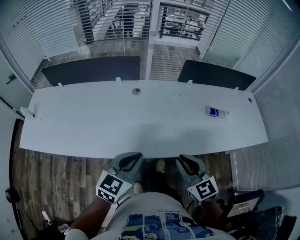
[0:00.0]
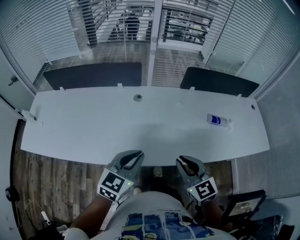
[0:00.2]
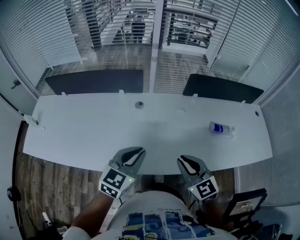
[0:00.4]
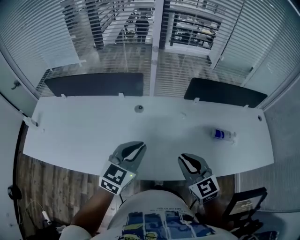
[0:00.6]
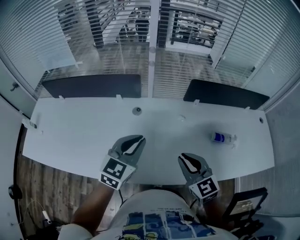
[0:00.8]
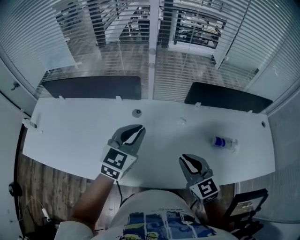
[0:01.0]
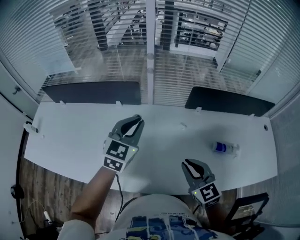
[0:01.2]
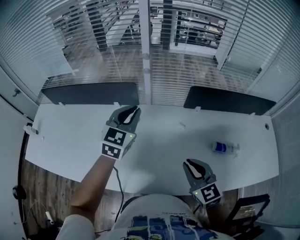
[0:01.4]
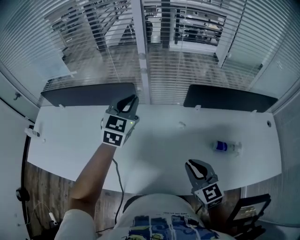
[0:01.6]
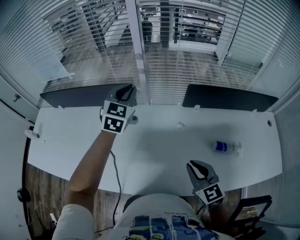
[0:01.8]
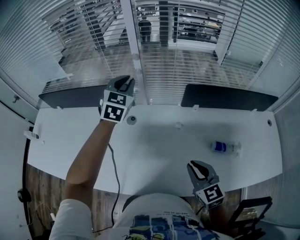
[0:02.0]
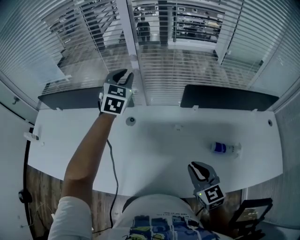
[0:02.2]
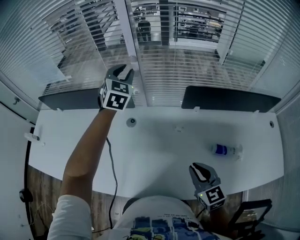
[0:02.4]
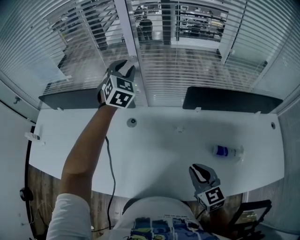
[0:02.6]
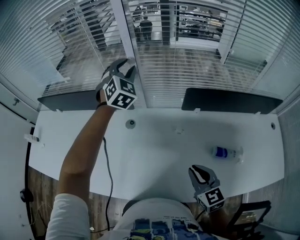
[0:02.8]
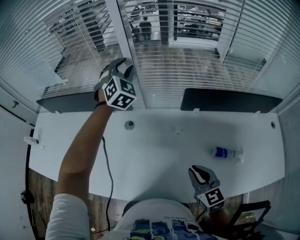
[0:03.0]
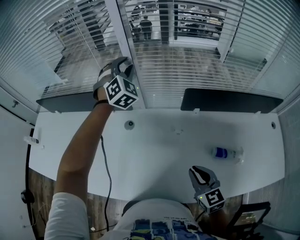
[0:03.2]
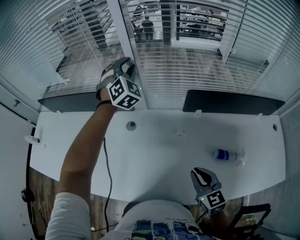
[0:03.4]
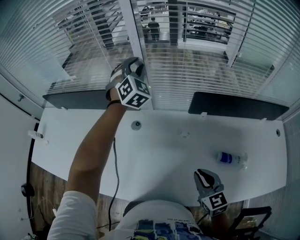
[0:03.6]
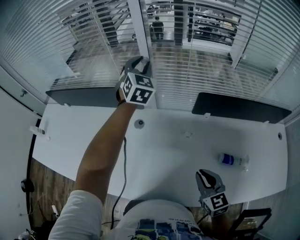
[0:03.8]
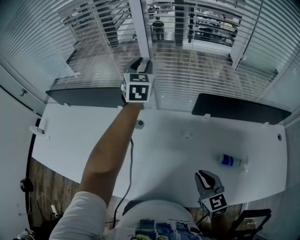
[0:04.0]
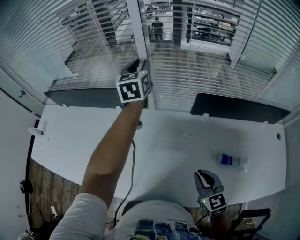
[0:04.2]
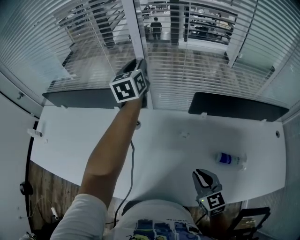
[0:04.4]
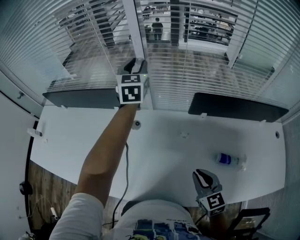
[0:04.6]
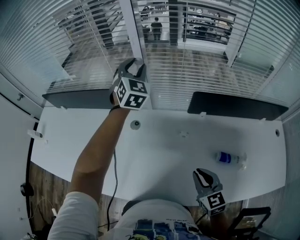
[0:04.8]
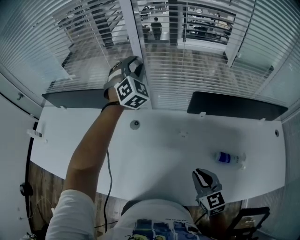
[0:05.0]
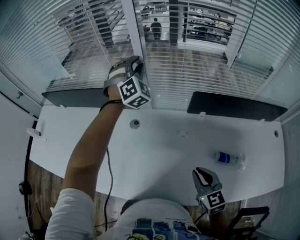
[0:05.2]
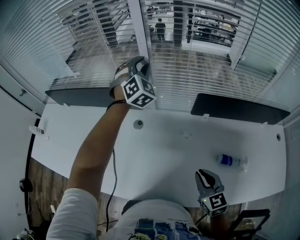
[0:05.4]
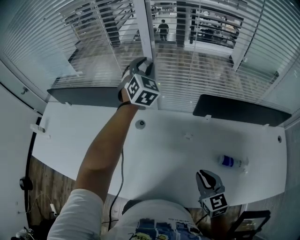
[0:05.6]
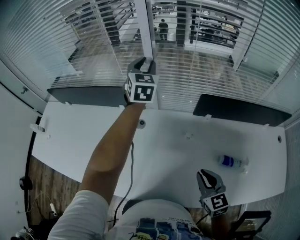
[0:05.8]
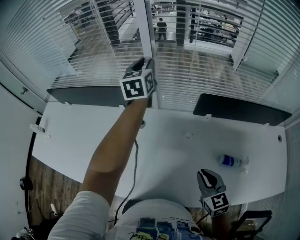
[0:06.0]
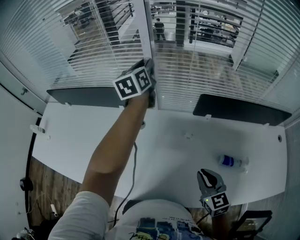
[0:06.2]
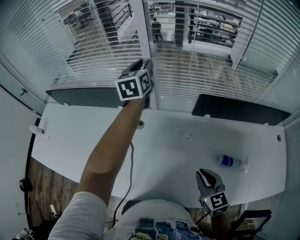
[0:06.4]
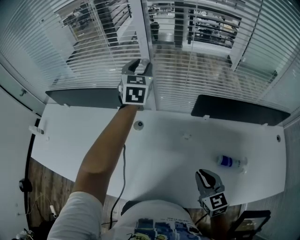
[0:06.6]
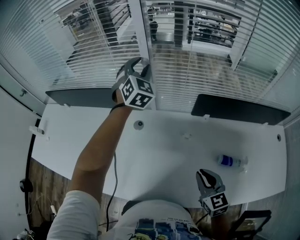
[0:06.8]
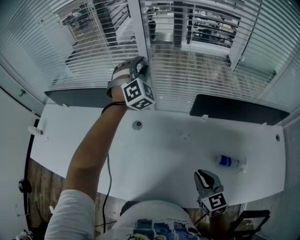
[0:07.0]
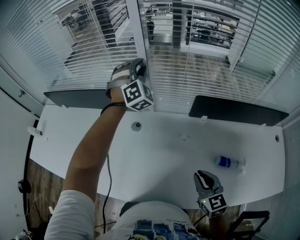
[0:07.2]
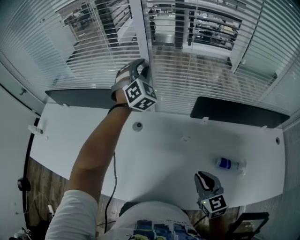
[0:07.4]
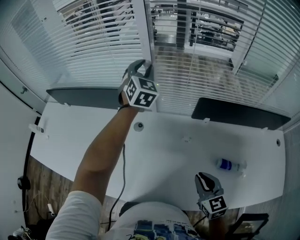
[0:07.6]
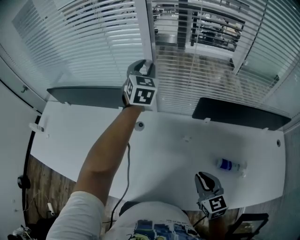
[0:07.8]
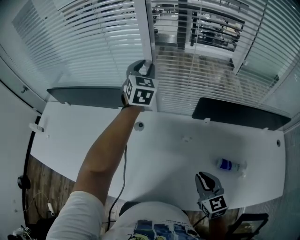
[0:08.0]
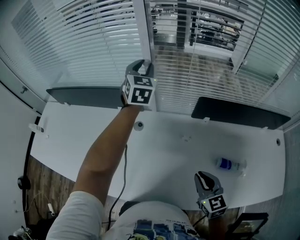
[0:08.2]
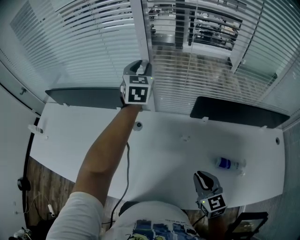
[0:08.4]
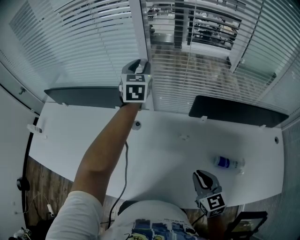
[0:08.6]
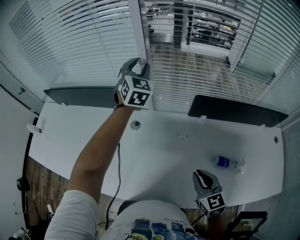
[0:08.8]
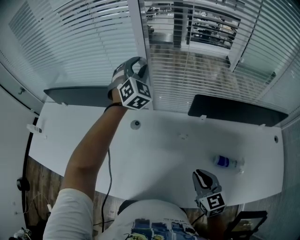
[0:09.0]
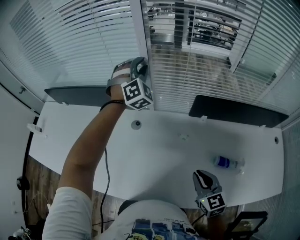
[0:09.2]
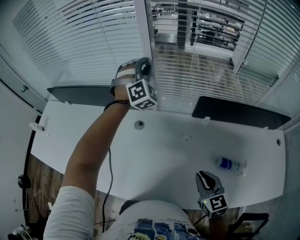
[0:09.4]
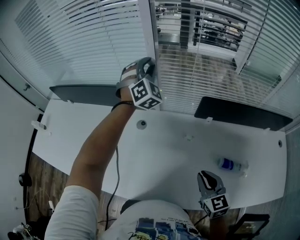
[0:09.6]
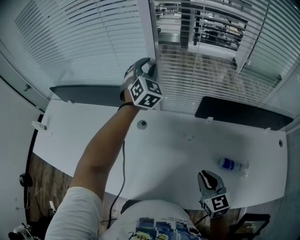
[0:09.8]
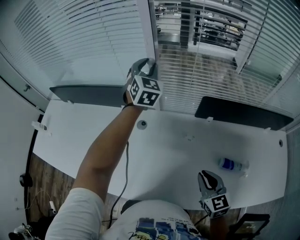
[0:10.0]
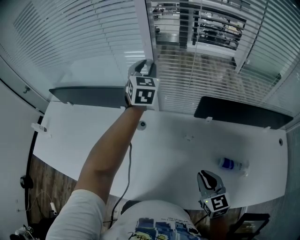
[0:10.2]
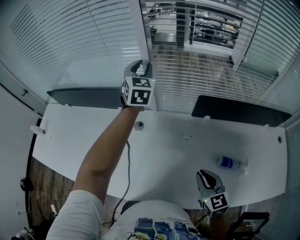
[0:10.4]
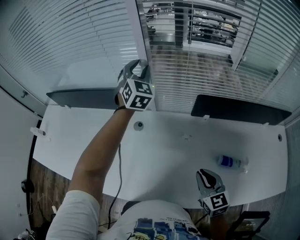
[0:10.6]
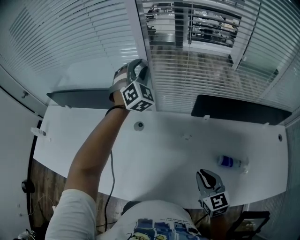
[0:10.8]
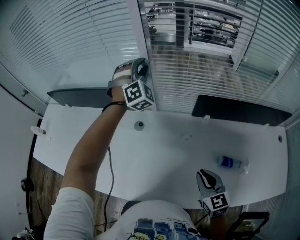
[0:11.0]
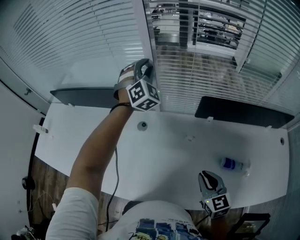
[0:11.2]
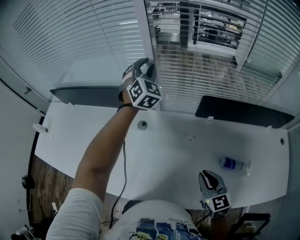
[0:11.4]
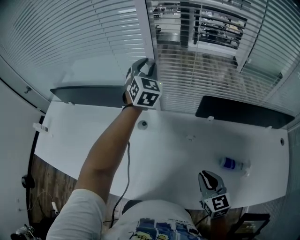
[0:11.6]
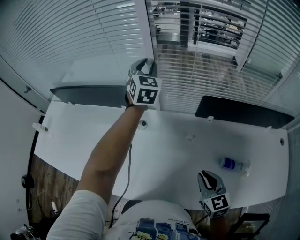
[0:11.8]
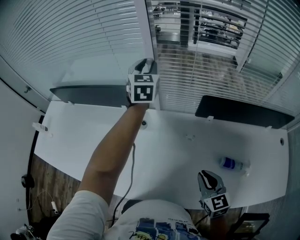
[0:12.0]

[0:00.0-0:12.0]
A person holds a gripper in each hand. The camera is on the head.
0:00.0 to 0:01.6: The left gripper moves forward, roughly 40 cm, and rotates roughly 30 degrees. Meanwhile the right gripper travels forward and to the right by about 25 cm.
0:01.6 to 0:03.0: The right gripper shifts about 10 cm to the right and downward. Meanwhile the left gripper moves forward, approximately 15 cm, swivels approximately 40 degrees, and opens up.
0:03.0 to 0:04.4: The left gripper twists roughly 60 degrees counterclockwise, seen from behind.
0:06.0 to 0:07.6: The left gripper rotates some 40 degrees.
0:09.0 to 0:10.4: The left gripper rotates approximately 30 degrees.

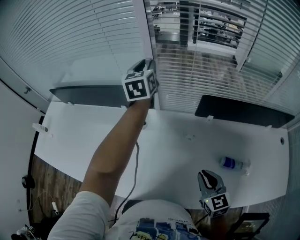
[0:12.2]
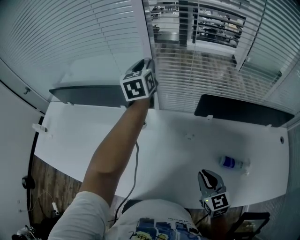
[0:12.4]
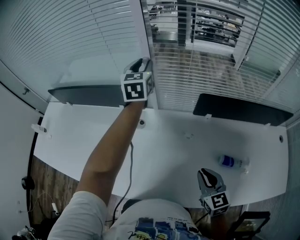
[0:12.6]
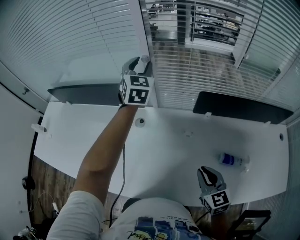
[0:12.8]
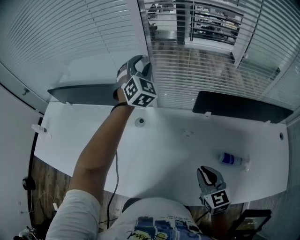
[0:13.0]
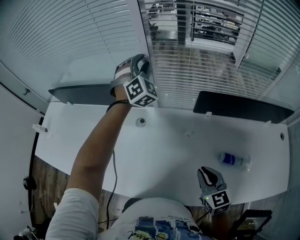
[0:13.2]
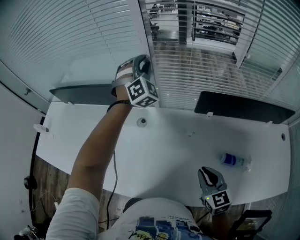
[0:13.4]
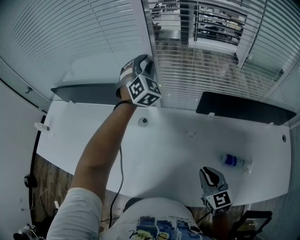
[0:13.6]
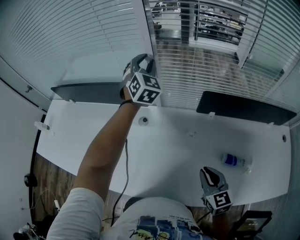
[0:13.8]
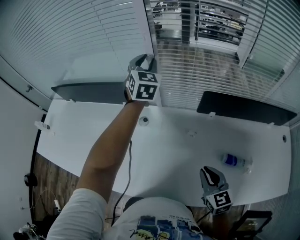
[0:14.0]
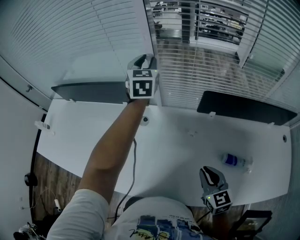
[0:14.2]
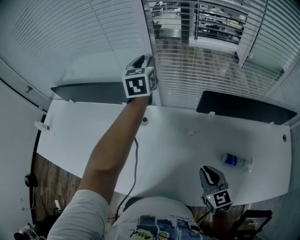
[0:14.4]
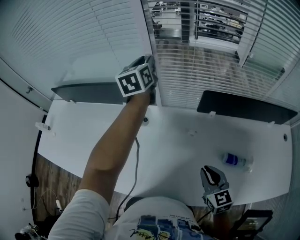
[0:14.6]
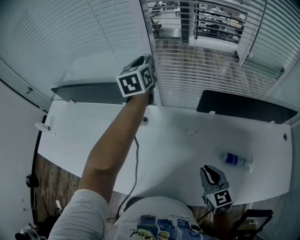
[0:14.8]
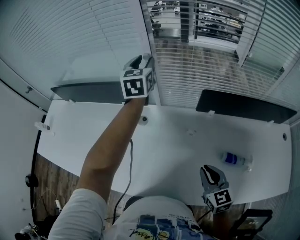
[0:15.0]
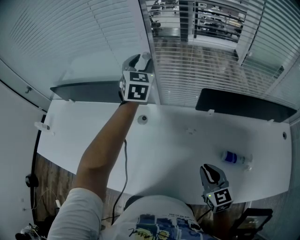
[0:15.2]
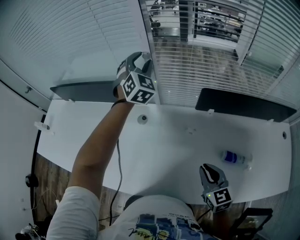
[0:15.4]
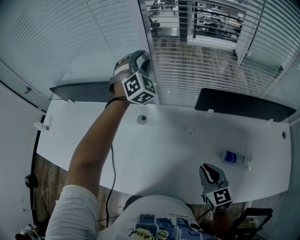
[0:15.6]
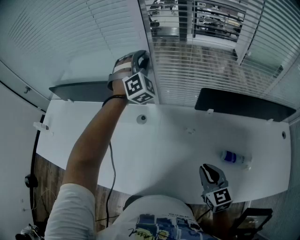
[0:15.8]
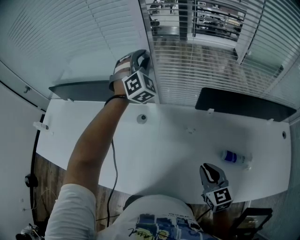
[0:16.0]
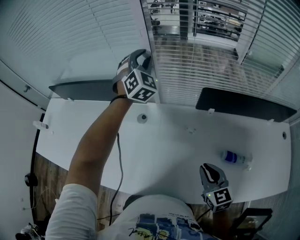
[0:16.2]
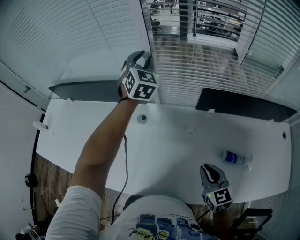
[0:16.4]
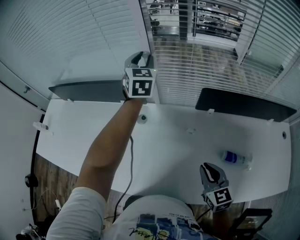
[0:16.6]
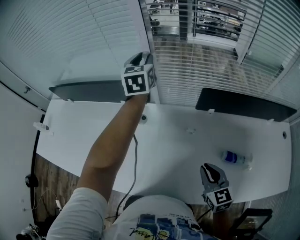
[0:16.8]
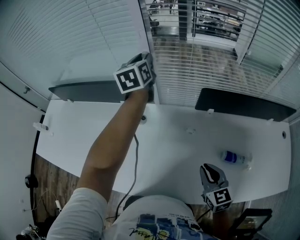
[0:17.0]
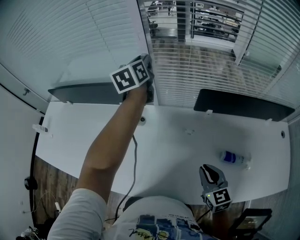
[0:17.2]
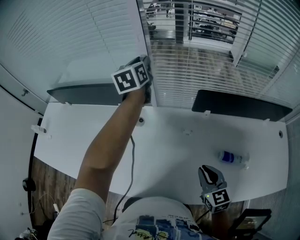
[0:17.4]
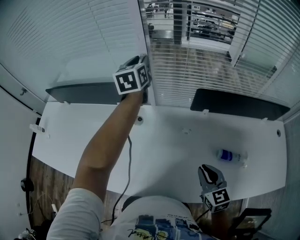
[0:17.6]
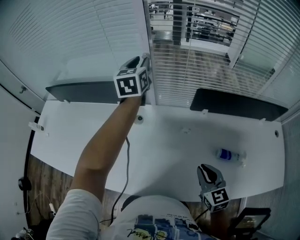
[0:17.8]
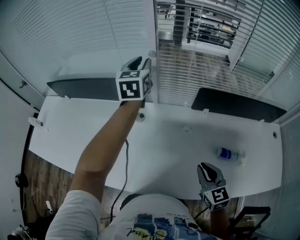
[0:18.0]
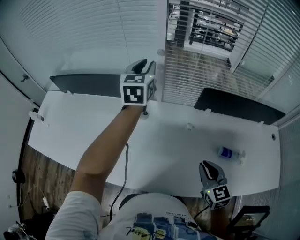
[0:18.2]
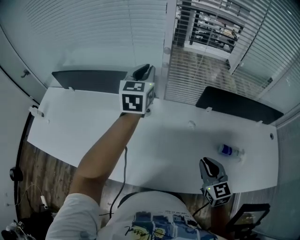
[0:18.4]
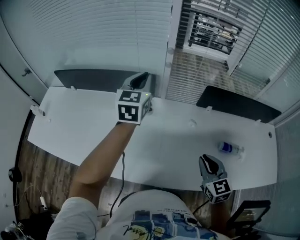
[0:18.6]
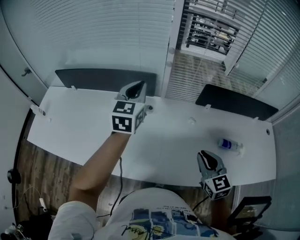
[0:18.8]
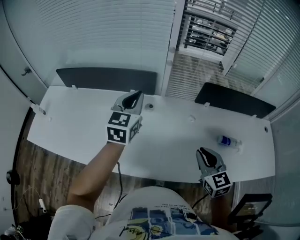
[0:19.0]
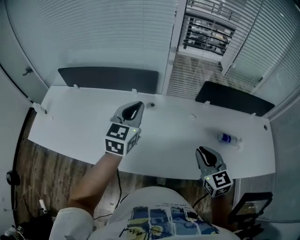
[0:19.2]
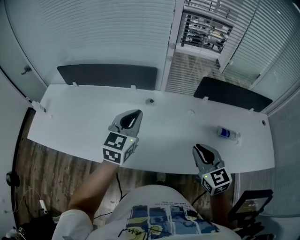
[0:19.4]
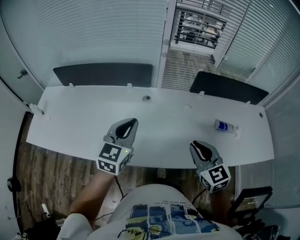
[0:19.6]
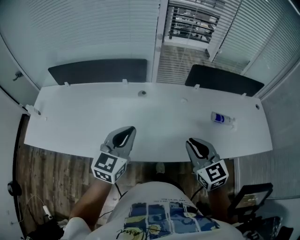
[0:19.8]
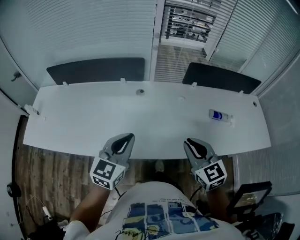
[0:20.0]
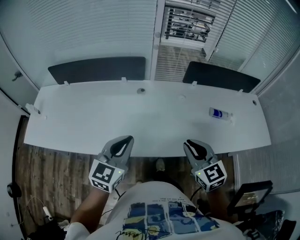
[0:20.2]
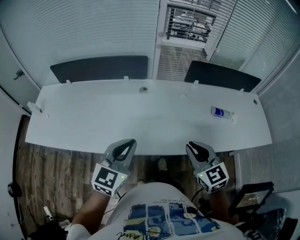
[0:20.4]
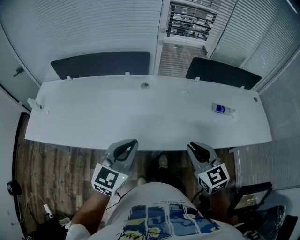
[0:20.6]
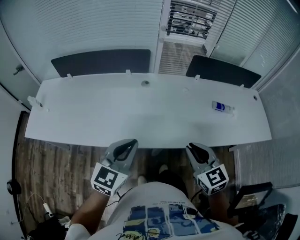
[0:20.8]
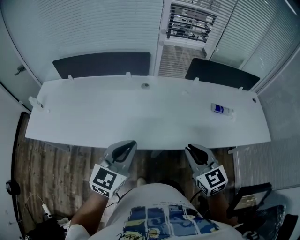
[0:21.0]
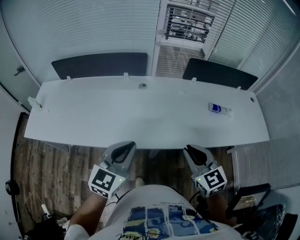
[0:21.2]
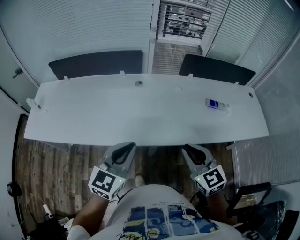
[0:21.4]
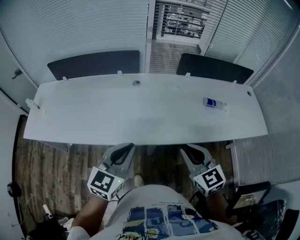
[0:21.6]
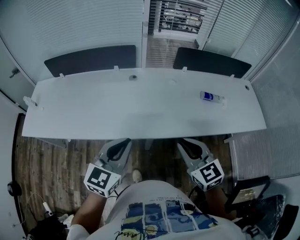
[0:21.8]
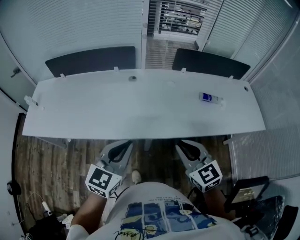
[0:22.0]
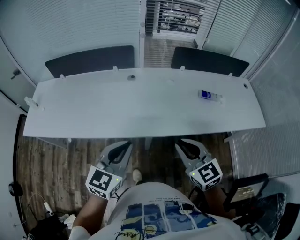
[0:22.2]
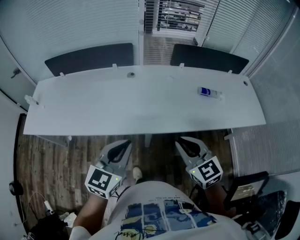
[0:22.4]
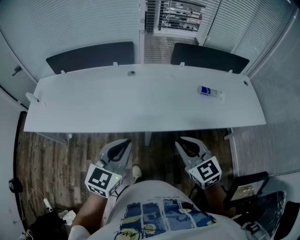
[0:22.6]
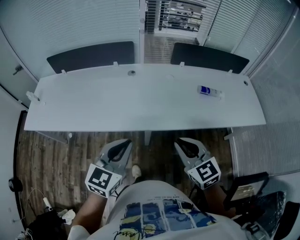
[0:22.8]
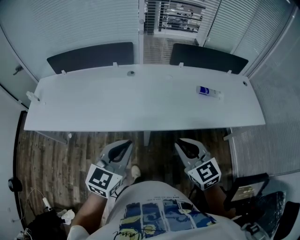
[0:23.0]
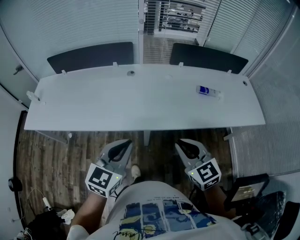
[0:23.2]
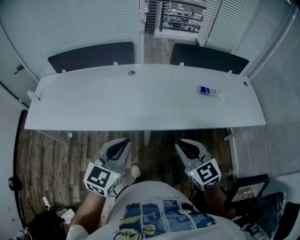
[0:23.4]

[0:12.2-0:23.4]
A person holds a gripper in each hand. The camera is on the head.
0:12.2 to 0:13.8: The left gripper twists some 50 degrees clockwise, seen from behind.
0:15.4 to 0:17.0: The left gripper rotates around the line of its fingers by roughly 60 degrees, counterclockwise from behind.
0:17.0 to 0:18.6: The right gripper is displaced to the left and upward by approximately 10 cm. Meanwhile the left gripper moves backward and to the left, some 20 cm, and closes.
0:18.6 to 0:20.2: The right gripper is displaced backward and to the left by approximately 15 cm. The left gripper is displaced backward by roughly 35 cm, and swivels roughly 20 degrees.
0:20.2 to 0:21.8: Both grippers move backward, some 15 cm.
0:21.8 to 0:23.4: The two grippers go some 5 cm backward.

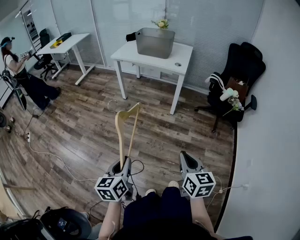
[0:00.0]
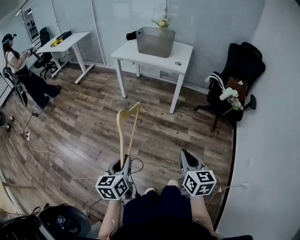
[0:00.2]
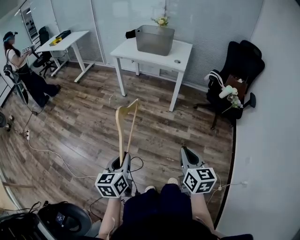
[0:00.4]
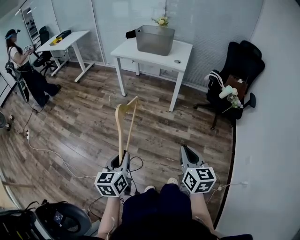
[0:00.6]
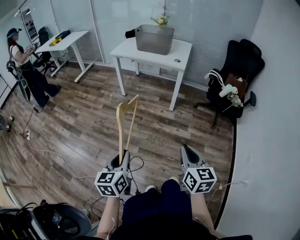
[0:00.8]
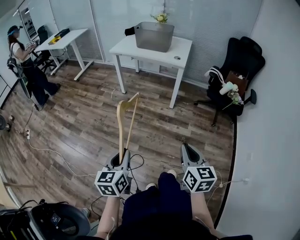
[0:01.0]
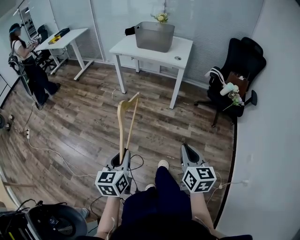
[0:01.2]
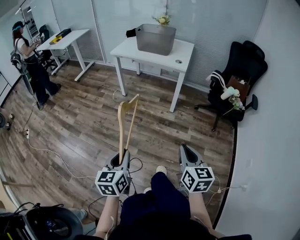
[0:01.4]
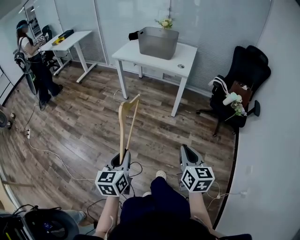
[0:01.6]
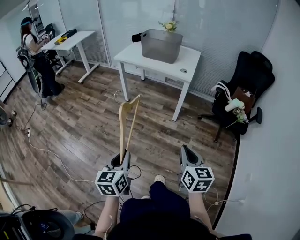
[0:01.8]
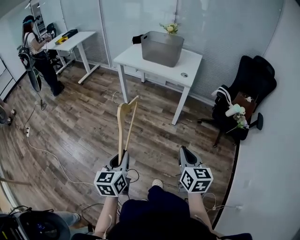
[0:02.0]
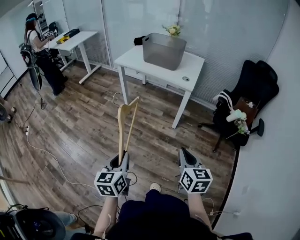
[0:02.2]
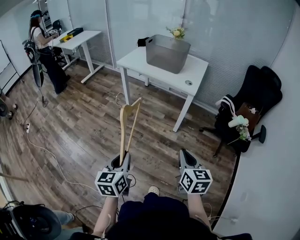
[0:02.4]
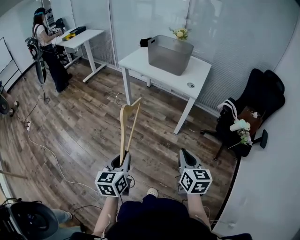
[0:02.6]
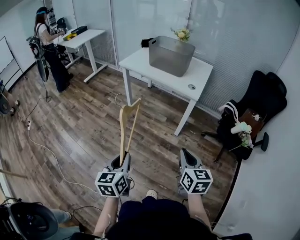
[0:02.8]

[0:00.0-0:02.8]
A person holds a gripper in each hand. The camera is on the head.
0:00.0 to 0:01.4: The grippers move only a little.
0:01.4 to 0:02.8: Both grippers travel together forward, approximately 20 cm.
